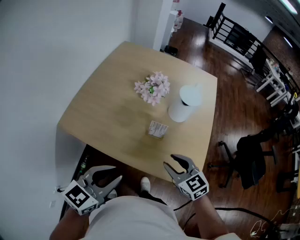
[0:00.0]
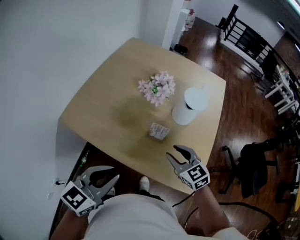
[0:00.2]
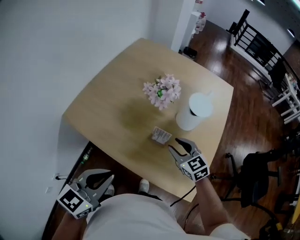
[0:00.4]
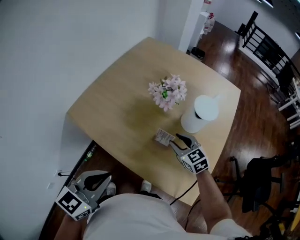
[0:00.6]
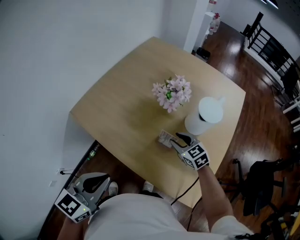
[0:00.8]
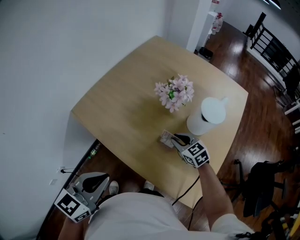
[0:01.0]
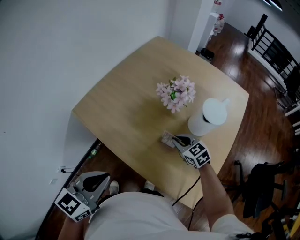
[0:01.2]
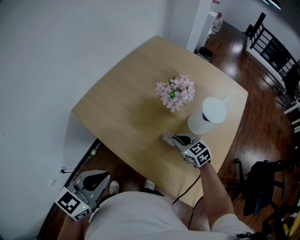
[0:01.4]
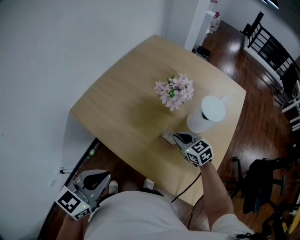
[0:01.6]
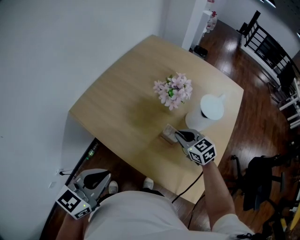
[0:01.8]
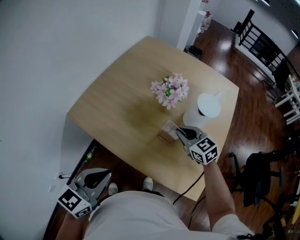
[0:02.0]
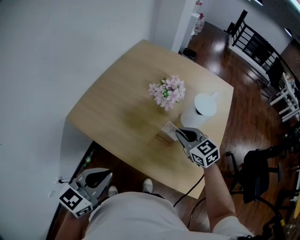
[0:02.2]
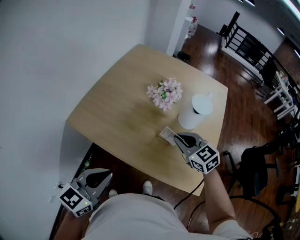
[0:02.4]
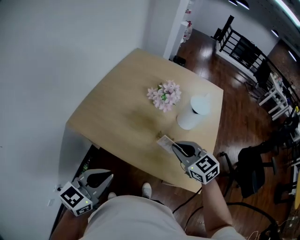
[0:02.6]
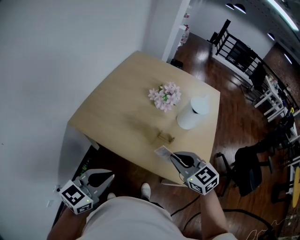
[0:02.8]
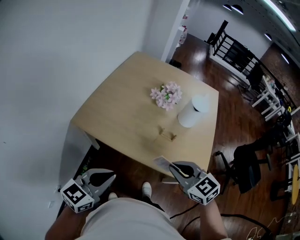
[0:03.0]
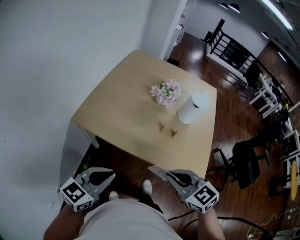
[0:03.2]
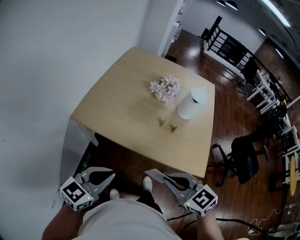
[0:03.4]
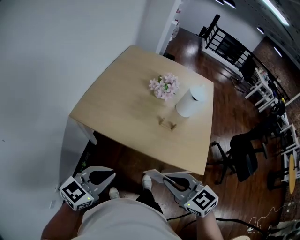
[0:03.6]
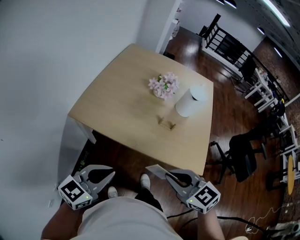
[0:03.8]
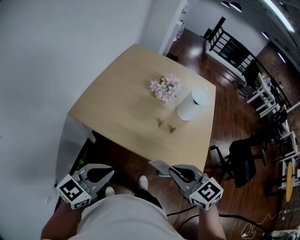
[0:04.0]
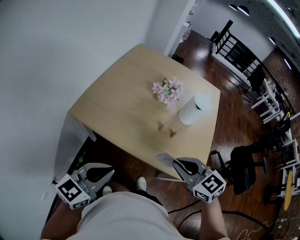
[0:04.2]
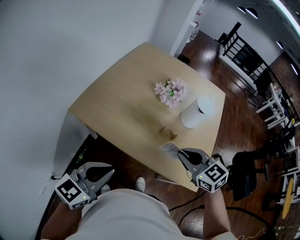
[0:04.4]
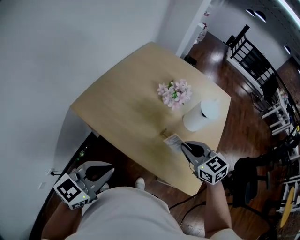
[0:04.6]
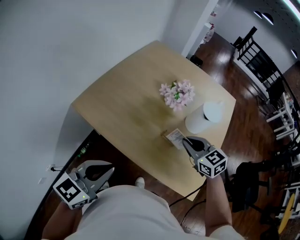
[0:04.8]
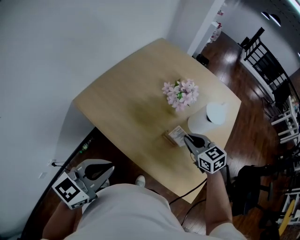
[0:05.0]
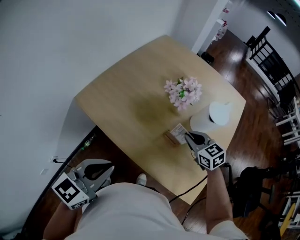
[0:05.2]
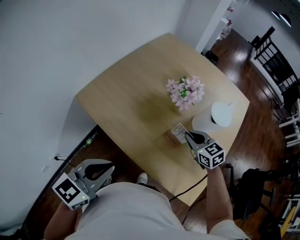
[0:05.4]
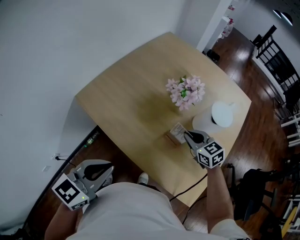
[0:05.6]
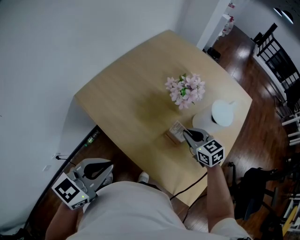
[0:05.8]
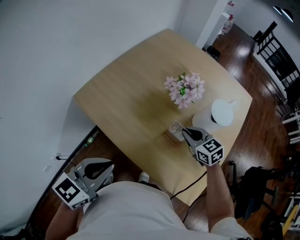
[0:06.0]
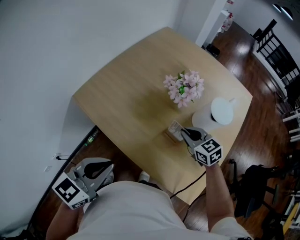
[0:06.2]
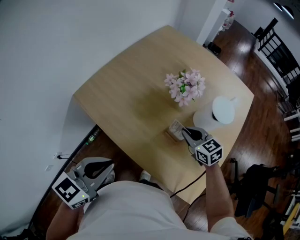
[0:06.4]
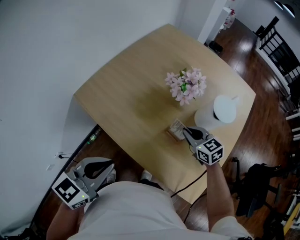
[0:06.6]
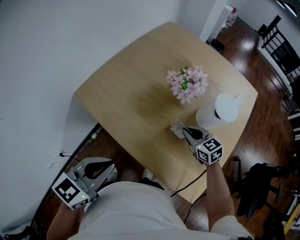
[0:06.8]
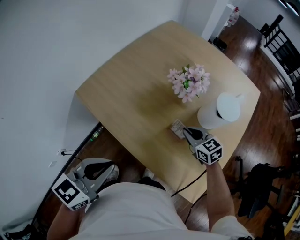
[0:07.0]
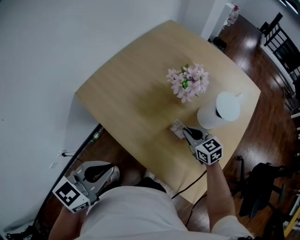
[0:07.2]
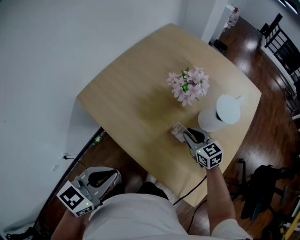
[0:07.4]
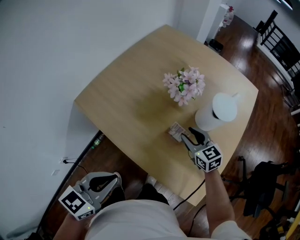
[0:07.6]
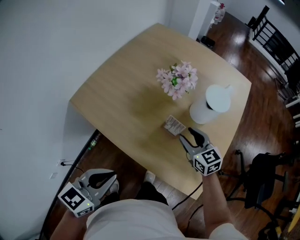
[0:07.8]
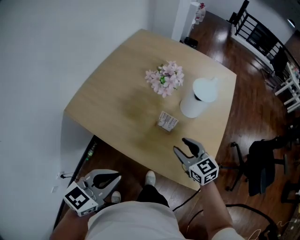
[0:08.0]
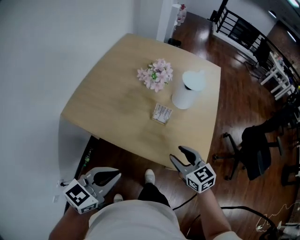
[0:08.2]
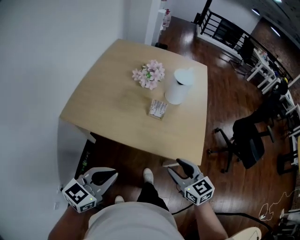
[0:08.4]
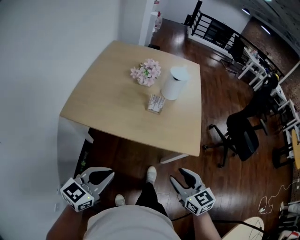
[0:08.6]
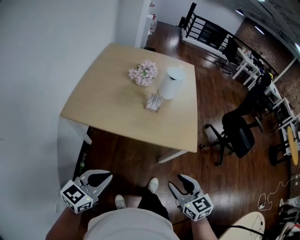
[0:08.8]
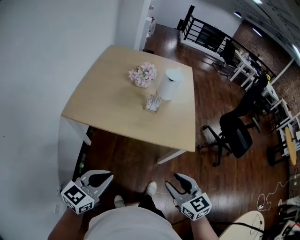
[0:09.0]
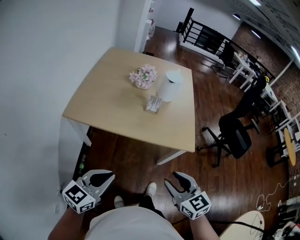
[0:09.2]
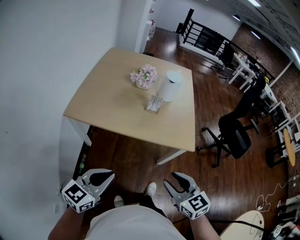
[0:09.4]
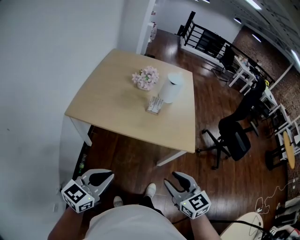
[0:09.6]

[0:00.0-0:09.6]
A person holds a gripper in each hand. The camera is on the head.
0:00.0 to 0:01.6: The left gripper closes up; the right gripper goes roughly 20 cm forward and downward, and closes its fingers.
0:01.6 to 0:03.2: The right gripper heads backward, upward and to the left, covering some 35 cm. Meanwhile the left gripper is displaced to the left and backward by about 15 cm, and rotates about 20 degrees.
0:03.2 to 0:04.8: The right gripper shifts about 25 cm forward and to the right. Meanwhile the left gripper is displaced forward and to the right by about 10 cm.
0:04.8 to 0:06.4: The left gripper changes place by about 5 cm. Meanwhile the right gripper heads downward and forward, covering about 10 cm.
0:06.4 to 0:08.0: The right gripper travels backward by approximately 15 cm, and opens its fingers, while the left gripper travels backward by roughly 5 cm.
0:08.0 to 0:09.6: The left gripper heads backward and to the left, covering some 25 cm; the right gripper heads backward, covering roughly 40 cm, and changes its angle by approximately 20 degrees.

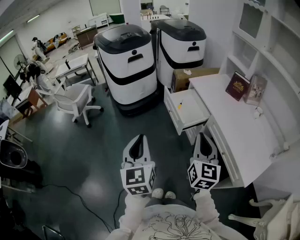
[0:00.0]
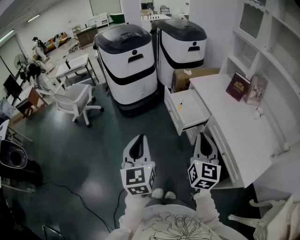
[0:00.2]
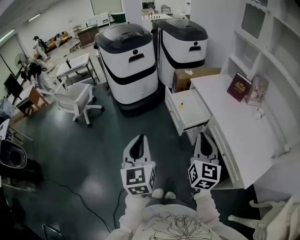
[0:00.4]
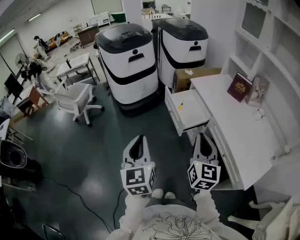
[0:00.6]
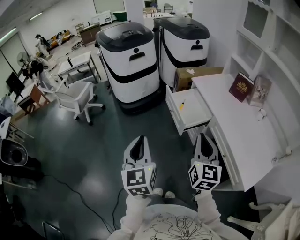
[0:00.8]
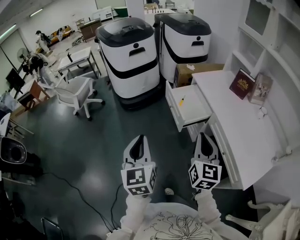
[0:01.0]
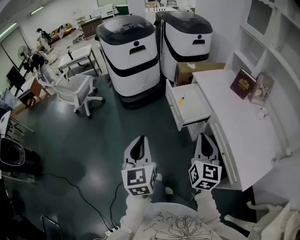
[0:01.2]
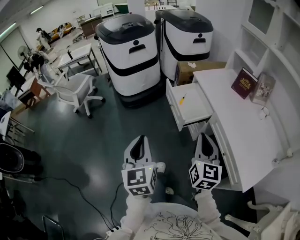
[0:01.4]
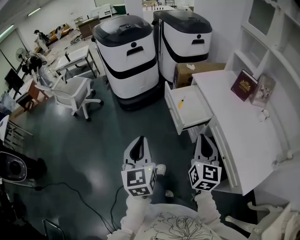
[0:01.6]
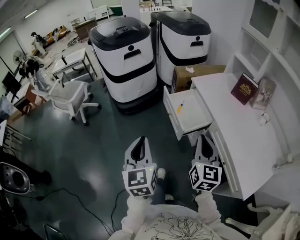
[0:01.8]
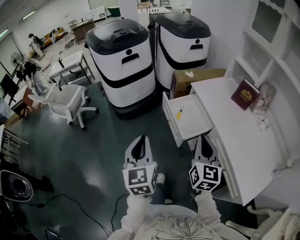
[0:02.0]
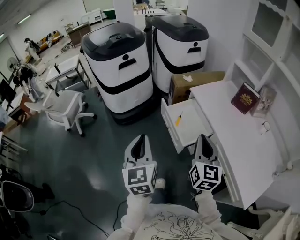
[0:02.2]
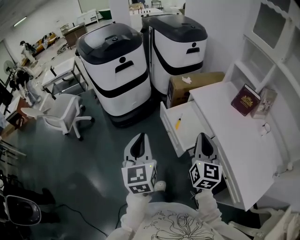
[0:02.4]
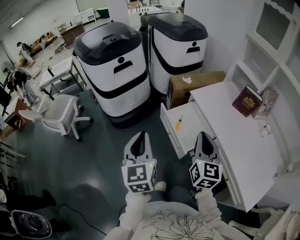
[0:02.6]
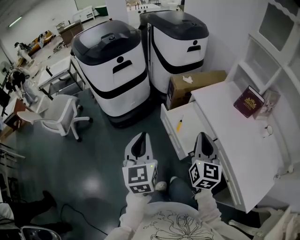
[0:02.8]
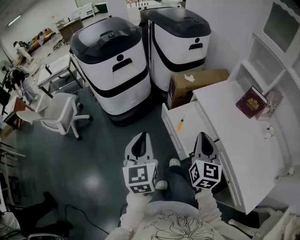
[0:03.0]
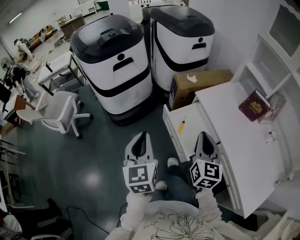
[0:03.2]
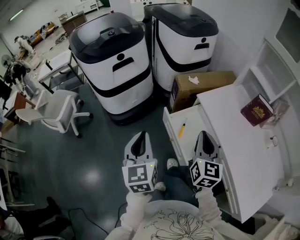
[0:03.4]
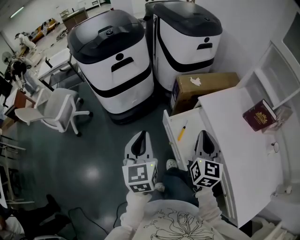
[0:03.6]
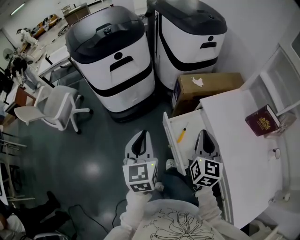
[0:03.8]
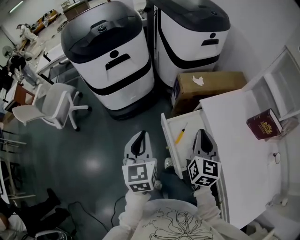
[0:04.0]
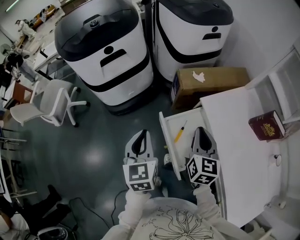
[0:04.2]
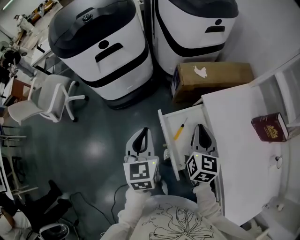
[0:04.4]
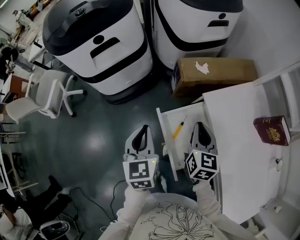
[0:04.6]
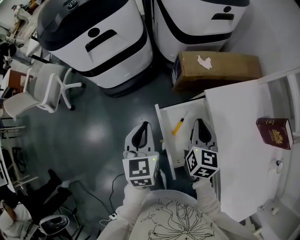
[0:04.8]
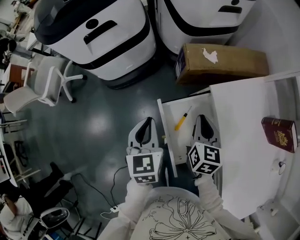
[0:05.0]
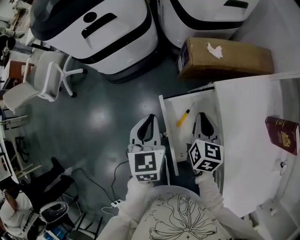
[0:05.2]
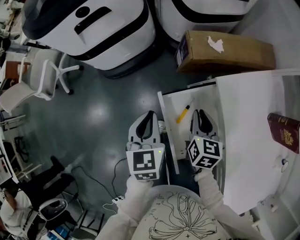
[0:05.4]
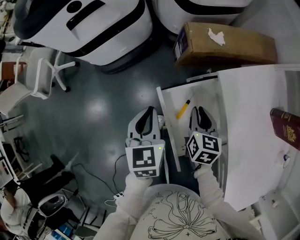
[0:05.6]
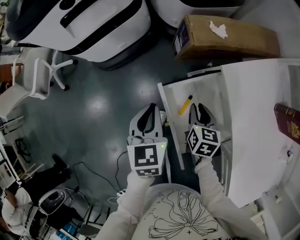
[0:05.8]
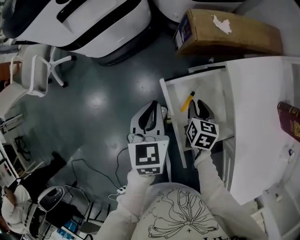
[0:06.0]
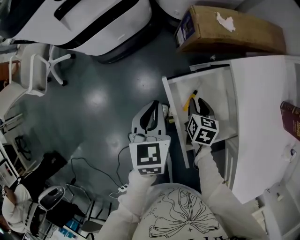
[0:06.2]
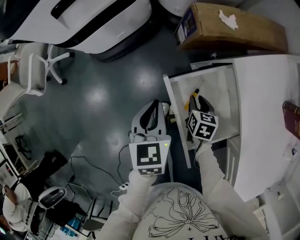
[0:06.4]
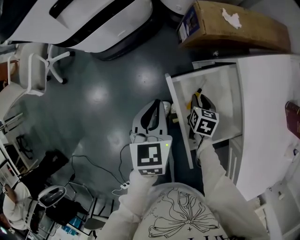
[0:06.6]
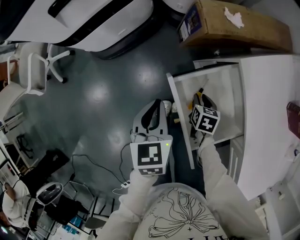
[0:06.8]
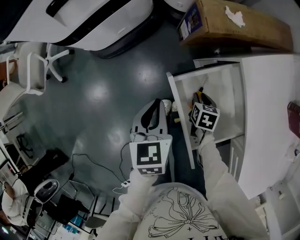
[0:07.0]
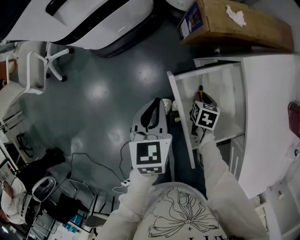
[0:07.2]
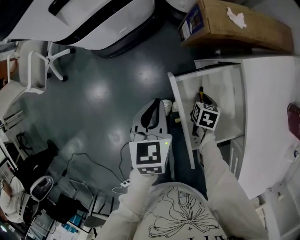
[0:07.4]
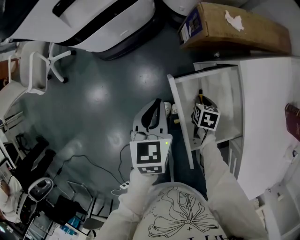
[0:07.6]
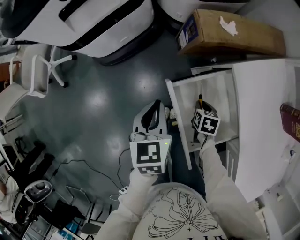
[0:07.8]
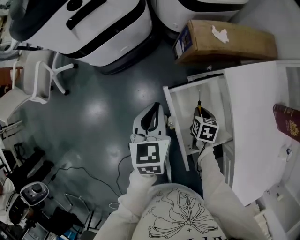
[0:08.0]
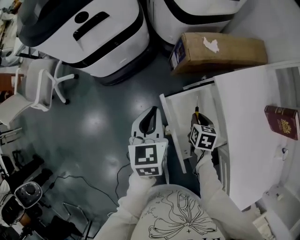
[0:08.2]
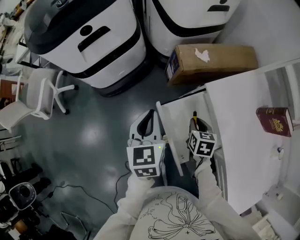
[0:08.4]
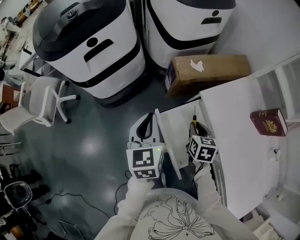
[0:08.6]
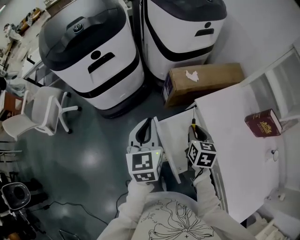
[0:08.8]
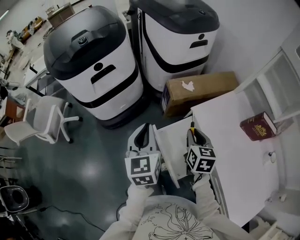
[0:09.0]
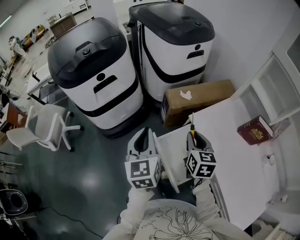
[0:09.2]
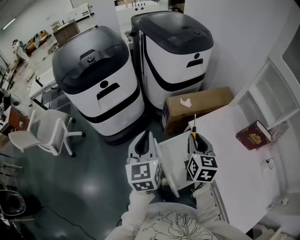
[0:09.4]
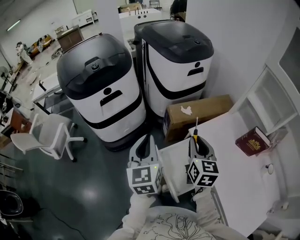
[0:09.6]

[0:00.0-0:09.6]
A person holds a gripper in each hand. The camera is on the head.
0:00.0 to 0:01.6: The right gripper moves forward, roughly 5 cm, while the left gripper shifts by approximately 5 cm.
0:01.6 to 0:03.2: Both grippers travel together forward, some 30 cm.
0:03.2 to 0:04.8: Both grippers travel together forward and downward, about 30 cm. The right gripper changes its angle by about 20 degrees.
0:04.8 to 0:06.4: The left gripper is displaced downward by about 15 cm; the right gripper is displaced downward by roughly 25 cm, swivels approximately 30 degrees, and opens up.
0:06.4 to 0:08.0: The grippers stay close to where they were, moving slightly.
0:08.0 to 0:09.6: The right gripper is displaced upward by about 40 cm, and tips its fingers upward by some 50 degrees. Meanwhile the left gripper heads upward, covering approximately 25 cm, and turns by about 30 degrees.

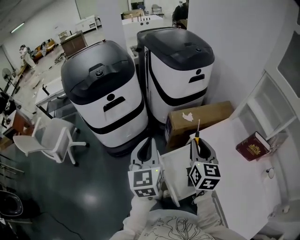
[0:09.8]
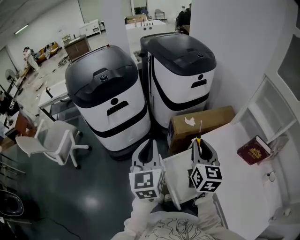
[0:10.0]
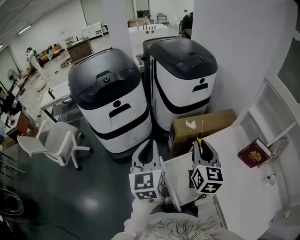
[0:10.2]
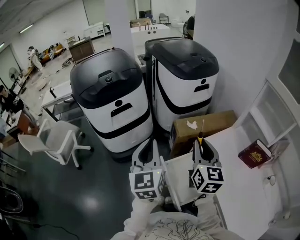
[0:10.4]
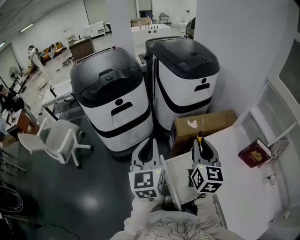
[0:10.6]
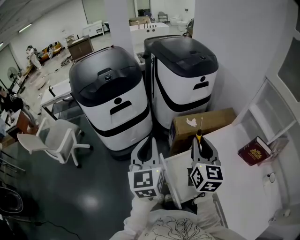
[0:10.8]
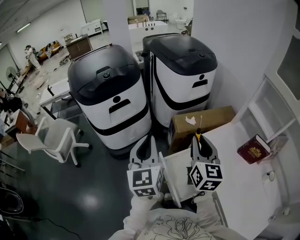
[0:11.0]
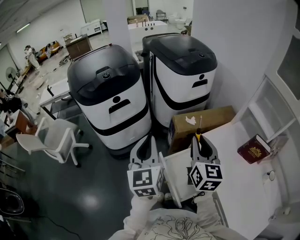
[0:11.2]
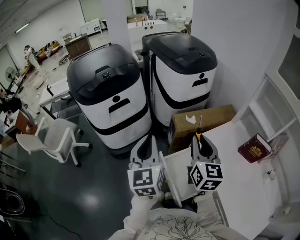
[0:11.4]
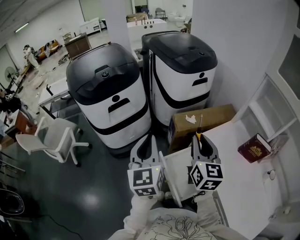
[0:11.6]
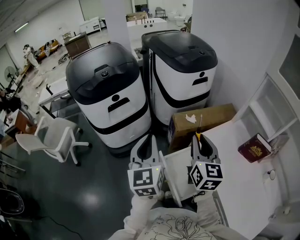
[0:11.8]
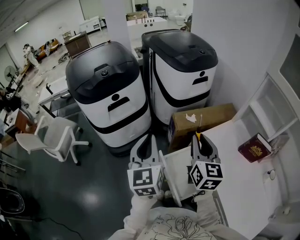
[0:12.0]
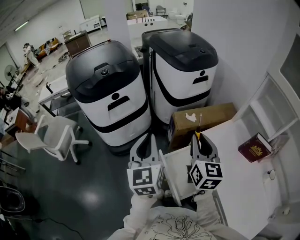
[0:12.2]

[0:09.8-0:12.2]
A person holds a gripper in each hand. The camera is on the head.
0:09.8 to 0:11.0: The right gripper goes approximately 5 cm upward.
0:11.0 to 0:12.2: The two grippers keep their place.

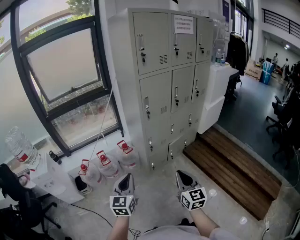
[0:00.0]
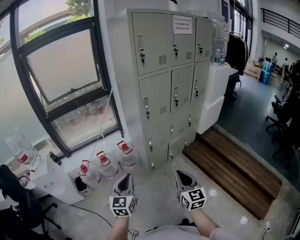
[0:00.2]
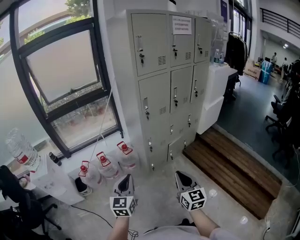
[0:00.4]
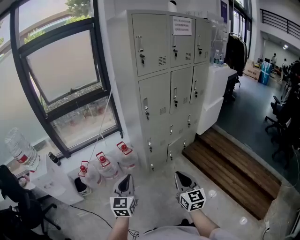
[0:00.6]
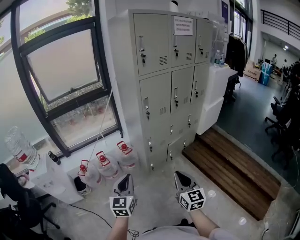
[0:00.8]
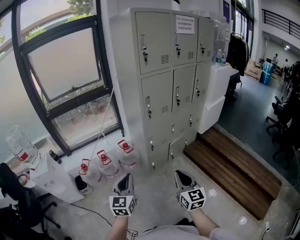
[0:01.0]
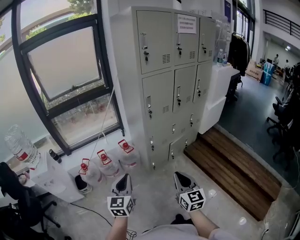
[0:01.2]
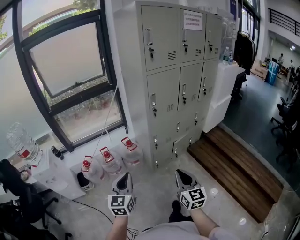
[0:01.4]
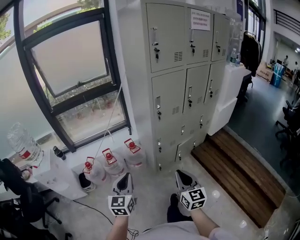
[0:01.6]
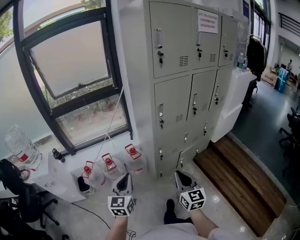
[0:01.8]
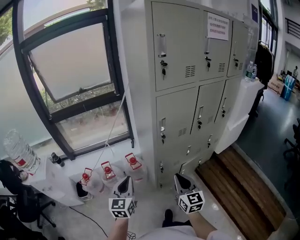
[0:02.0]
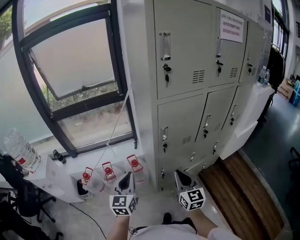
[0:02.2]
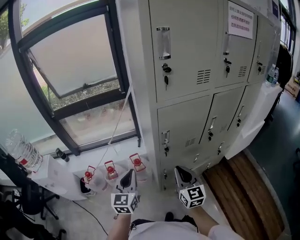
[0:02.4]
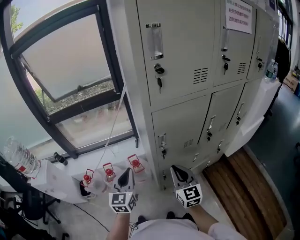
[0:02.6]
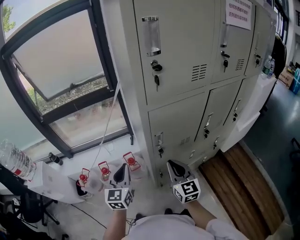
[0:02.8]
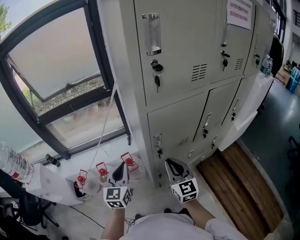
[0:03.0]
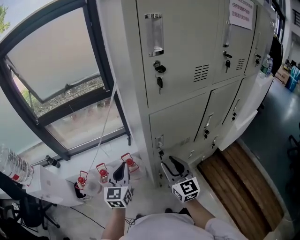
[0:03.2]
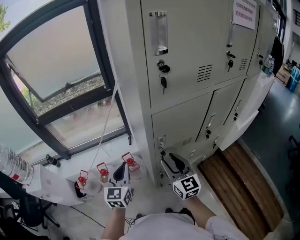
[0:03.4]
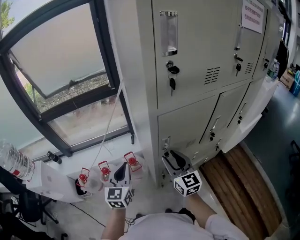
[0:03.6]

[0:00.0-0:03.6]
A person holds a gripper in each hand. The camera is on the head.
0:00.0 to 0:01.8: The two grippers go about 15 cm forward.
0:01.8 to 0:03.6: Both grippers travel together forward, some 35 cm. The right gripper opens up.
